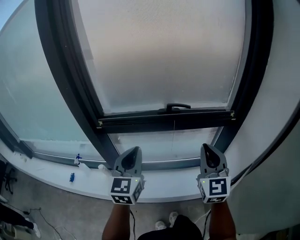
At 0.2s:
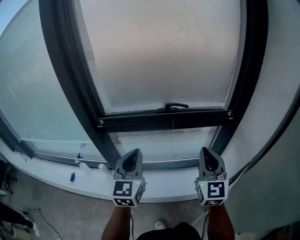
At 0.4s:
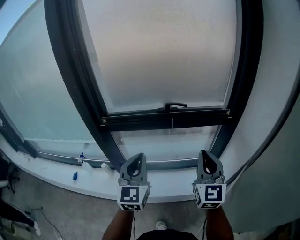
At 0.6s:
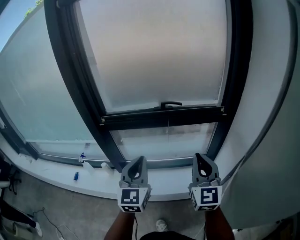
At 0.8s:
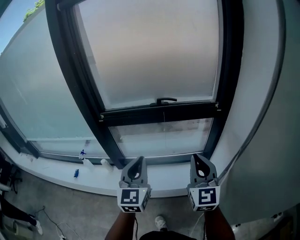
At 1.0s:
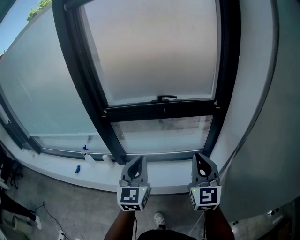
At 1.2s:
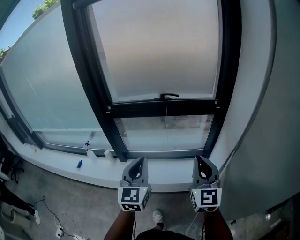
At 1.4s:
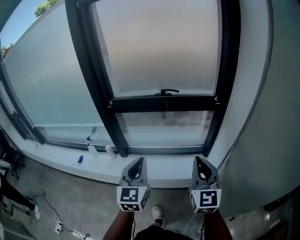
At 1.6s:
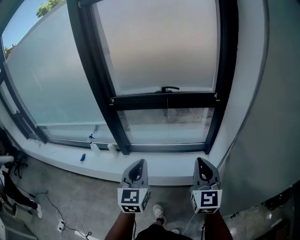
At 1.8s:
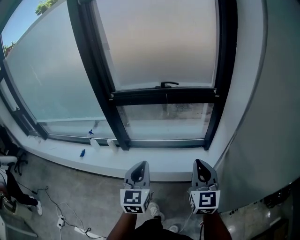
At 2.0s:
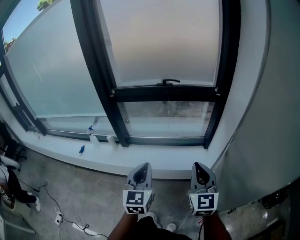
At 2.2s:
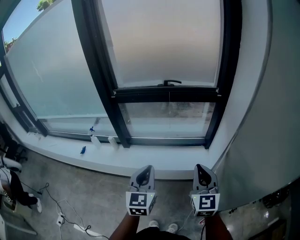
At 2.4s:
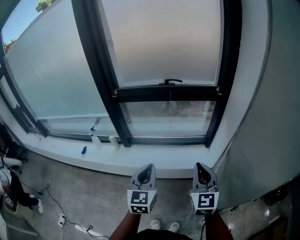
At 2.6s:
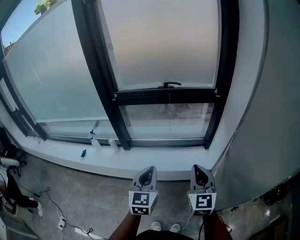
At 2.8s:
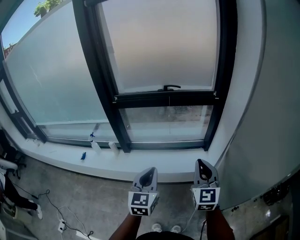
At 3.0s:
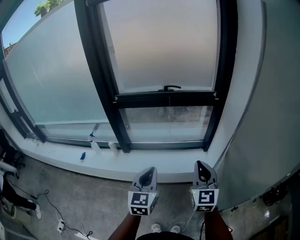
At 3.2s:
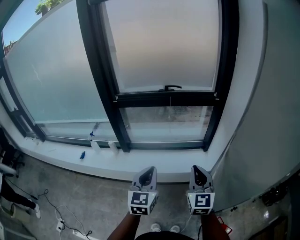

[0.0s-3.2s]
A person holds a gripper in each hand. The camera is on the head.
0.0s to 1.6s: The two grippers go approximately 30 cm backward.
1.6s to 3.2s: The left gripper shifts by some 5 cm. The right gripper heads downward, covering about 5 cm.

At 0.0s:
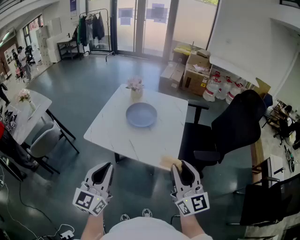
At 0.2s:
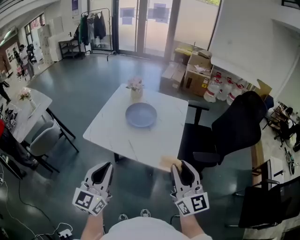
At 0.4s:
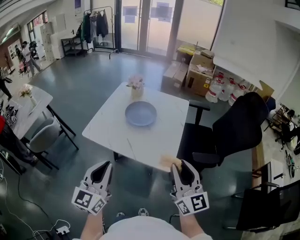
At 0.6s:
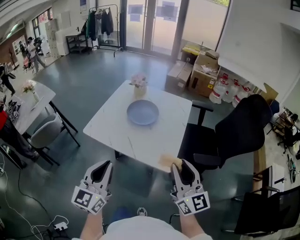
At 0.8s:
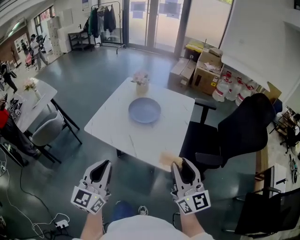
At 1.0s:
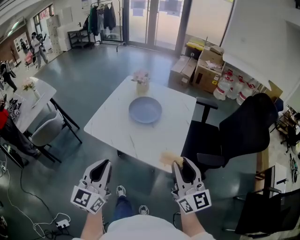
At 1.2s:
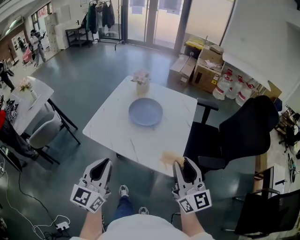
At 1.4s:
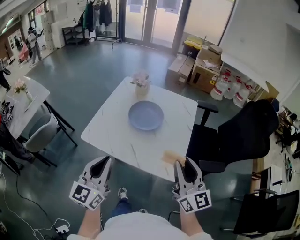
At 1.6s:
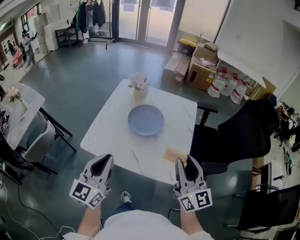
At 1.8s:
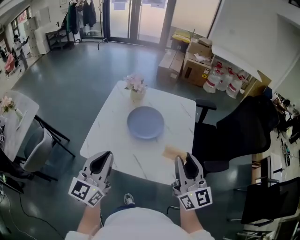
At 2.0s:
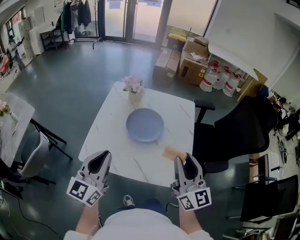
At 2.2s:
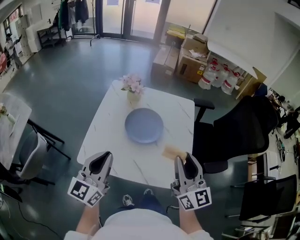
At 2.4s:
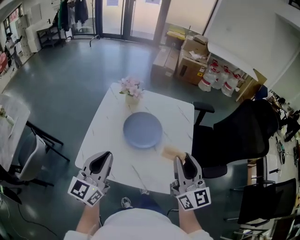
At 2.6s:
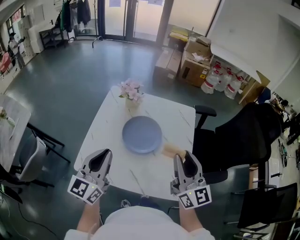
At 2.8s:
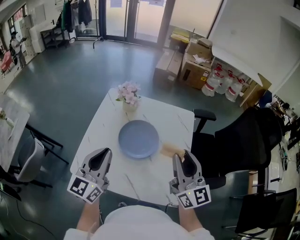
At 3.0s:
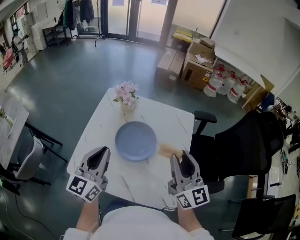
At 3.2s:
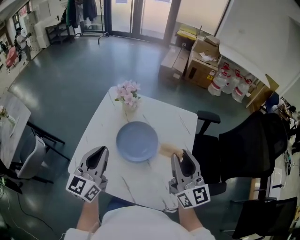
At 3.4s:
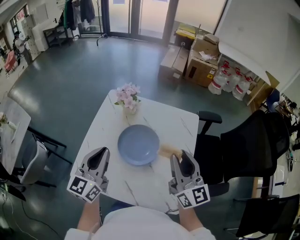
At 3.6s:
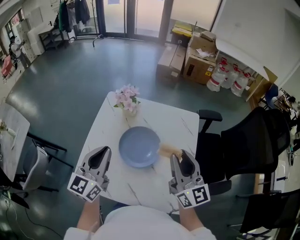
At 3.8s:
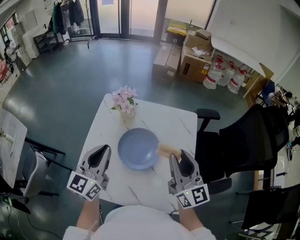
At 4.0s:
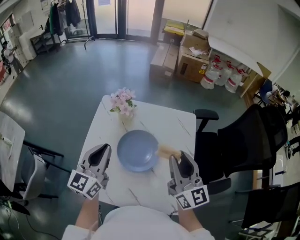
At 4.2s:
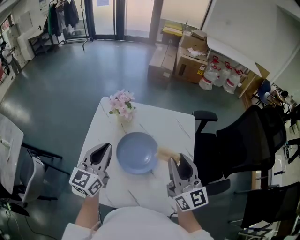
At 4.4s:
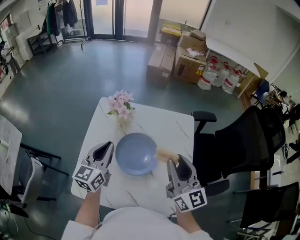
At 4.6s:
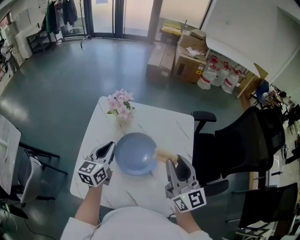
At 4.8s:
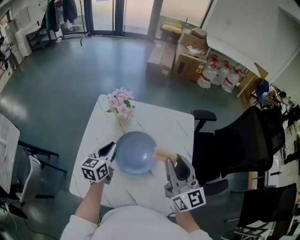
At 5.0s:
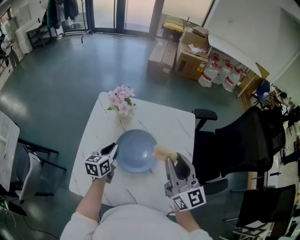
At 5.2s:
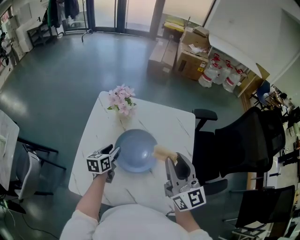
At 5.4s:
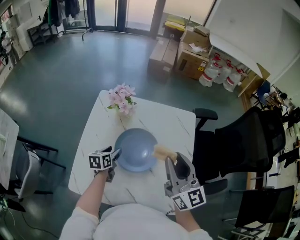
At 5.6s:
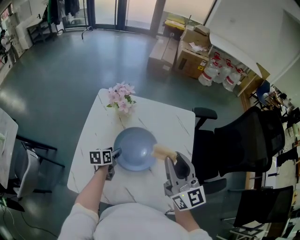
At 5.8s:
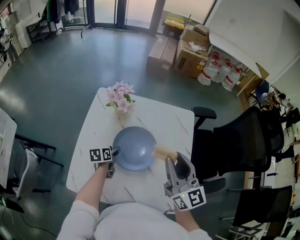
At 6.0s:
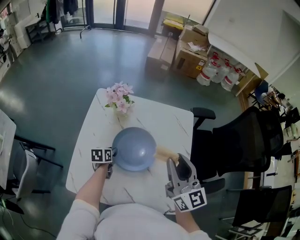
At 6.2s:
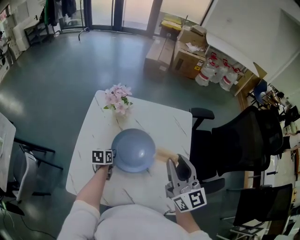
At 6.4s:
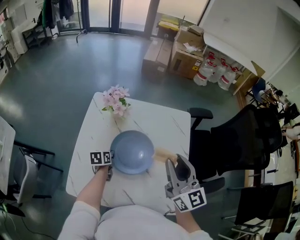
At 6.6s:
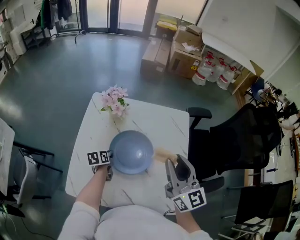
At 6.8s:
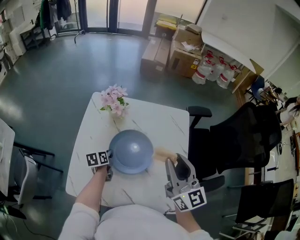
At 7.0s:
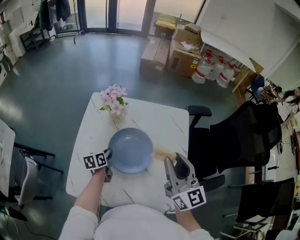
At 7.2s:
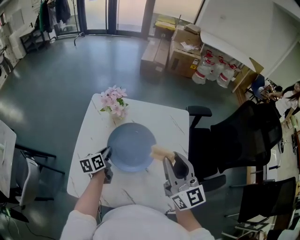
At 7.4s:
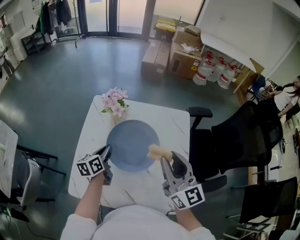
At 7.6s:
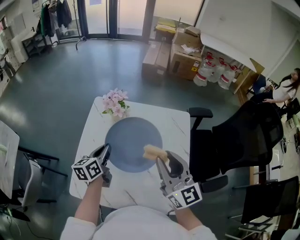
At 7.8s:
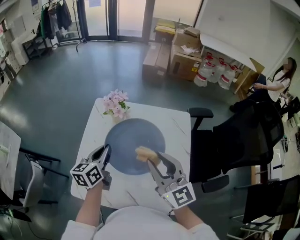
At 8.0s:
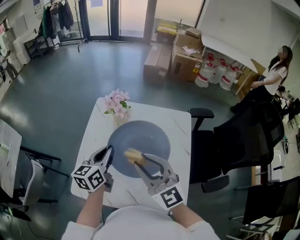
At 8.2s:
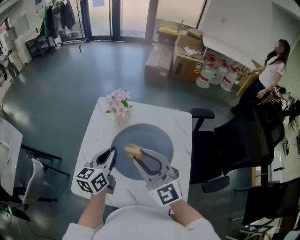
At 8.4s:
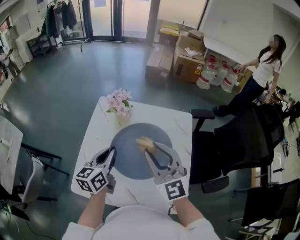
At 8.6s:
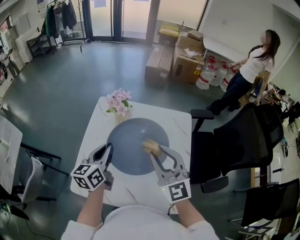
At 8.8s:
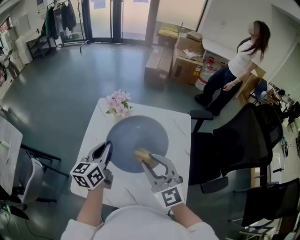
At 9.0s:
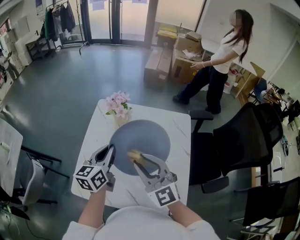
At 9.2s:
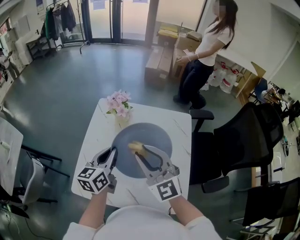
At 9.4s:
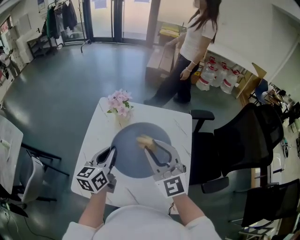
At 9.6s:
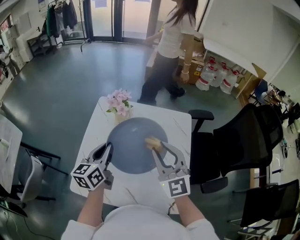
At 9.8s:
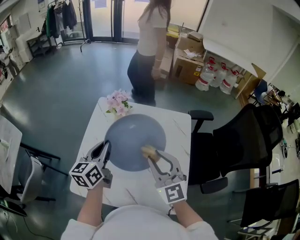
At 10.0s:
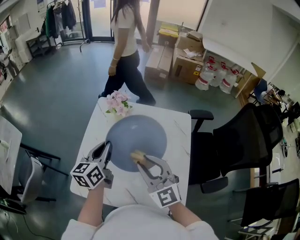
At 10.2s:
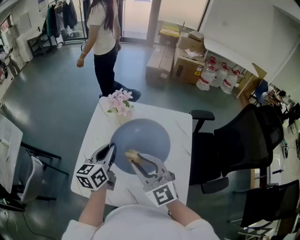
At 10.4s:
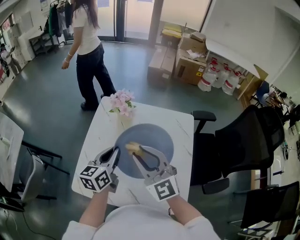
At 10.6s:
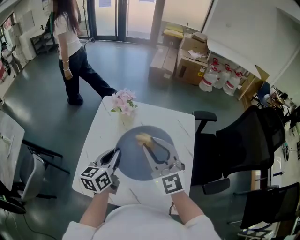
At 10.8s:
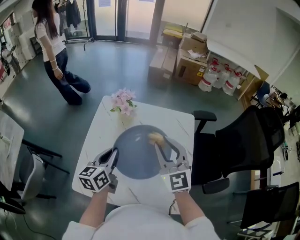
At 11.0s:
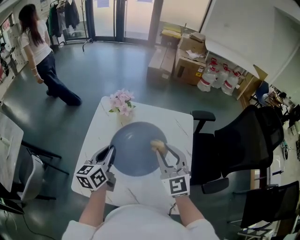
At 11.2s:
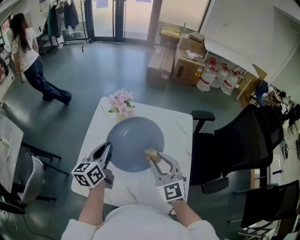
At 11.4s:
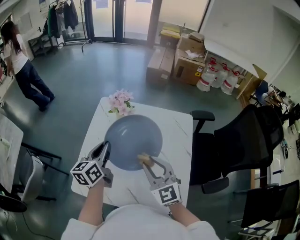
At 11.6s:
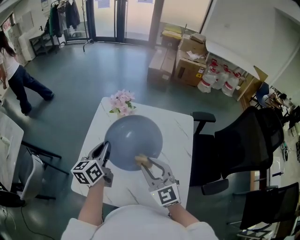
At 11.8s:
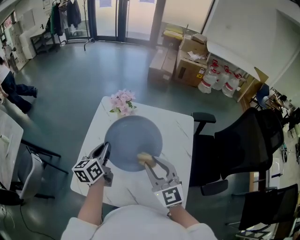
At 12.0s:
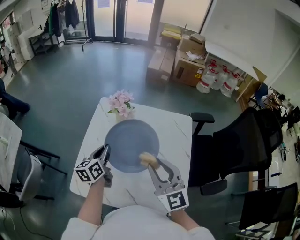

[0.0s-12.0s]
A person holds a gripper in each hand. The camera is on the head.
0.0s to 1.6s: The grippers both shift forward by about 15 cm.
1.6s to 3.0s: The two grippers go about 20 cm forward.
3.0s to 4.4s: The right gripper travels forward by some 5 cm. The left gripper shifts approximately 15 cm forward.
4.4s to 6.0s: The left gripper heads downward, covering roughly 25 cm, points its fingers about 40 degrees further downward, and opens.
6.0s to 7.6s: The left gripper goes some 20 cm upward, rotates some 30 degrees, and closes up.
7.6s to 9.0s: The left gripper moves upward, approximately 10 cm. The right gripper goes left and right, some 10 cm each way, reversing 2 times, and rotates approximately 30 degrees.
9.0s to 10.4s: The right gripper reaches roughly 5 cm to the right, then returns.
10.4s to 12.0s: The left gripper travels downward by roughly 5 cm. The right gripper moves to the right, some 5 cm, and turns by roughly 20 degrees.

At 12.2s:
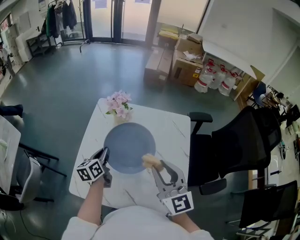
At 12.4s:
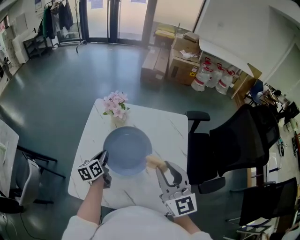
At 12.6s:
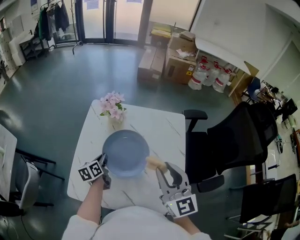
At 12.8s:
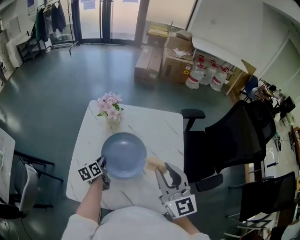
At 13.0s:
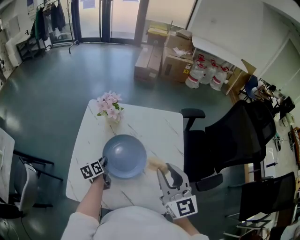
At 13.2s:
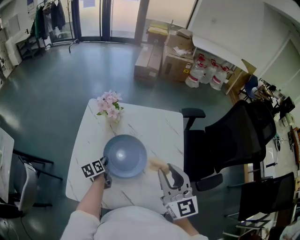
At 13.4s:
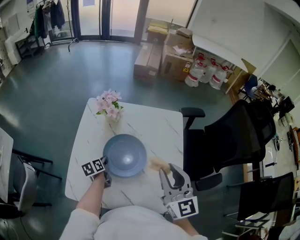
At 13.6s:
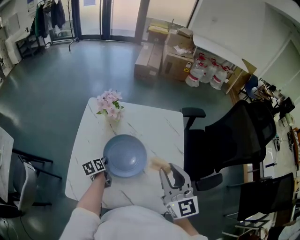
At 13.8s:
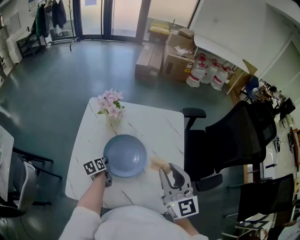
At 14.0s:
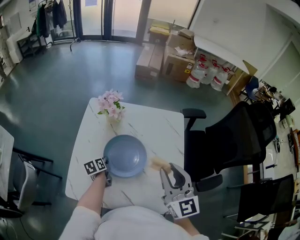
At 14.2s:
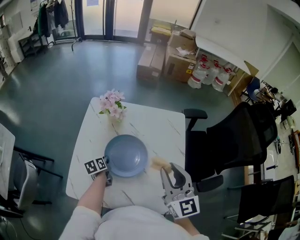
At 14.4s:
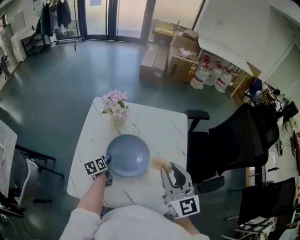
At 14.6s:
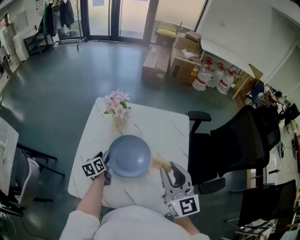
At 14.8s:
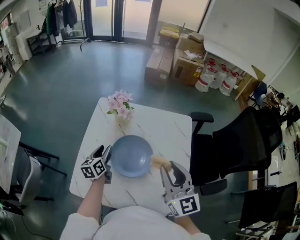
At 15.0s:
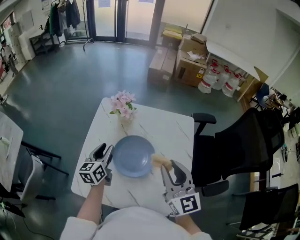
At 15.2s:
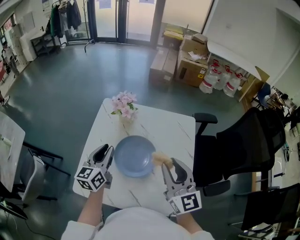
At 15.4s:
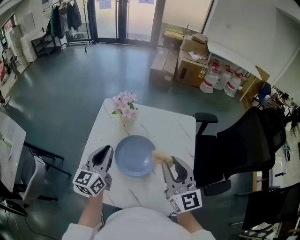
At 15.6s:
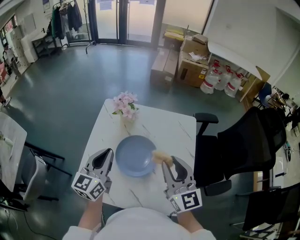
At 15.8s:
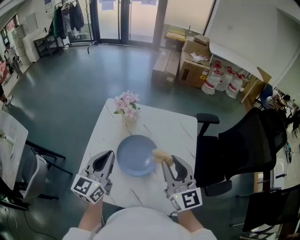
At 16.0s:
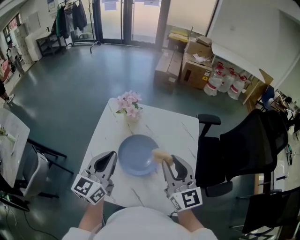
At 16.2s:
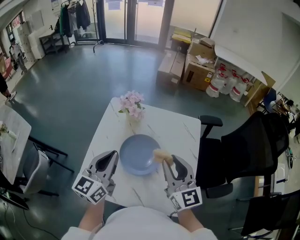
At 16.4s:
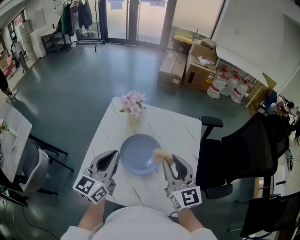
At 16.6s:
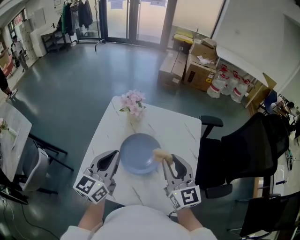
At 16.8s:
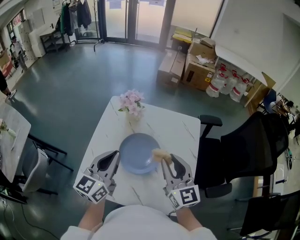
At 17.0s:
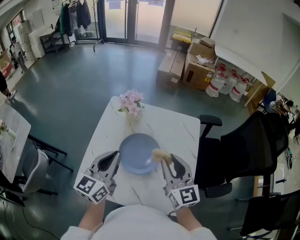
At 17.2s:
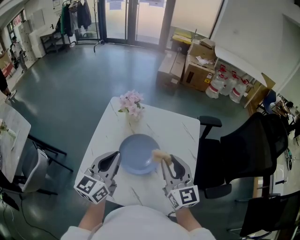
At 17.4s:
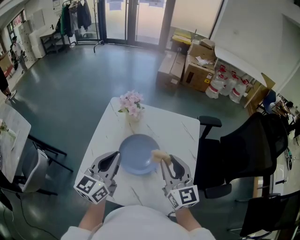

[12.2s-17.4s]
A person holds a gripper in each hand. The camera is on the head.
12.2s to 14.0s: The right gripper goes some 5 cm to the right; the left gripper travels downward by some 15 cm, and rotates roughly 20 degrees.
14.0s to 15.6s: The left gripper goes some 30 cm upward, angles its fingers upward, by roughly 40 degrees, and opens, then closes again.
15.6s to 17.4s: There are only small adjustments of the grippers.

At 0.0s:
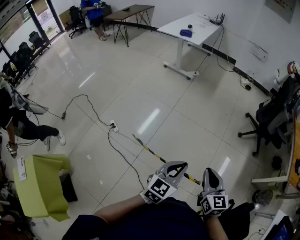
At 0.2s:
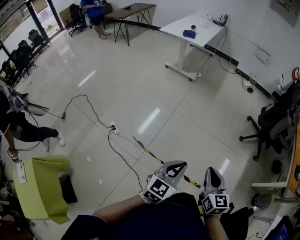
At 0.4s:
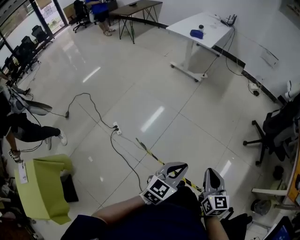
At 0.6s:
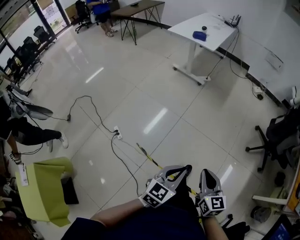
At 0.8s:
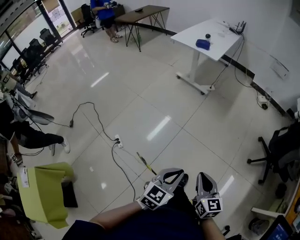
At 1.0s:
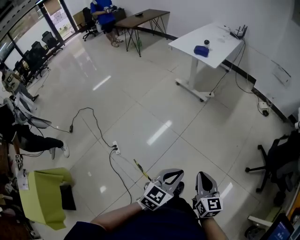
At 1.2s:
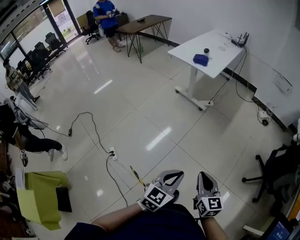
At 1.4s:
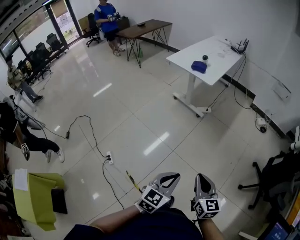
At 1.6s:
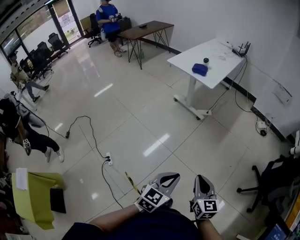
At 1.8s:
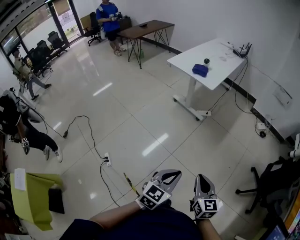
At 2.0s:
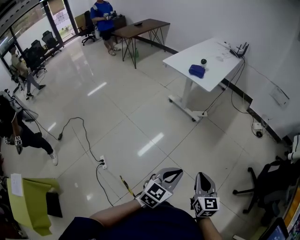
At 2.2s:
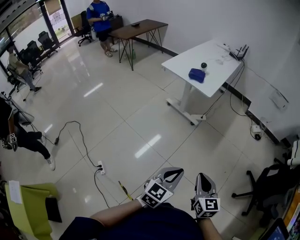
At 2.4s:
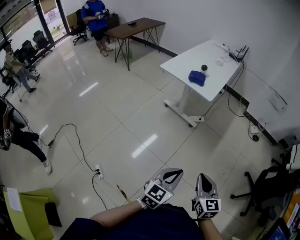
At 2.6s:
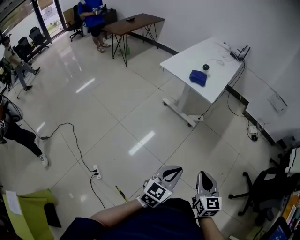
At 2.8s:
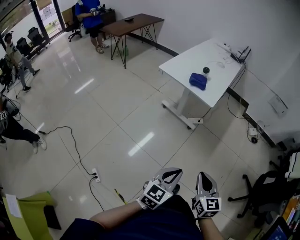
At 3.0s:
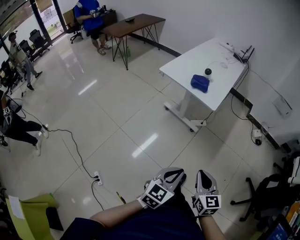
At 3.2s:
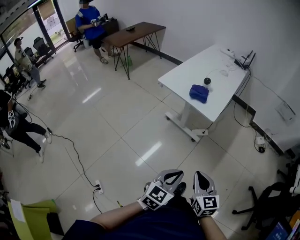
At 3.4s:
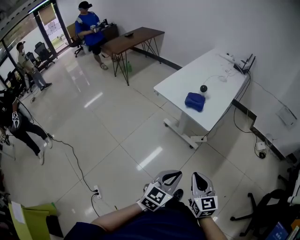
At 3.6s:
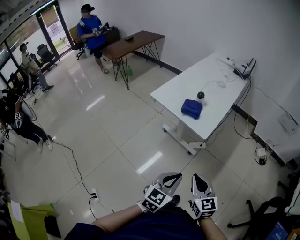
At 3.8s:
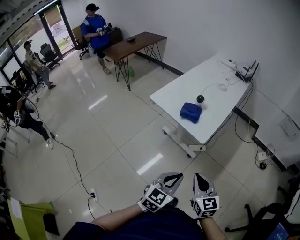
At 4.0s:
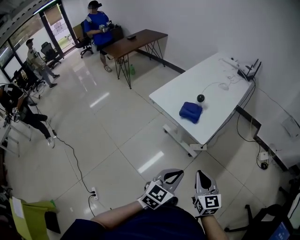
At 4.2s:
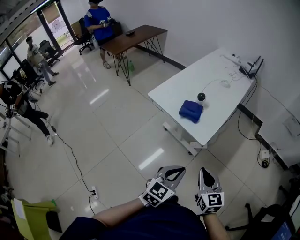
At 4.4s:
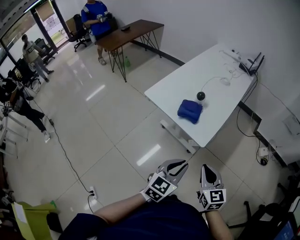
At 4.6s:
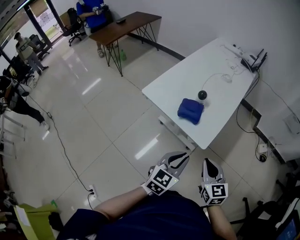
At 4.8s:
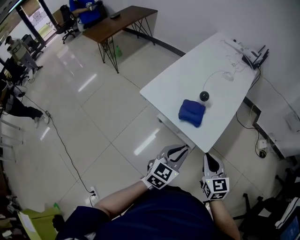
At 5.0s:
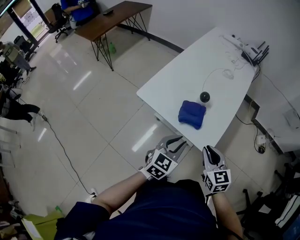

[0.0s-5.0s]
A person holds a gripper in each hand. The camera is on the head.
0.0s to 1.6s: The pair of grippers is taken forward, some 40 cm.
1.6s to 3.4s: The two grippers travel together, forward, some 40 cm.
3.4s to 5.0s: The two grippers go approximately 35 cm forward.
